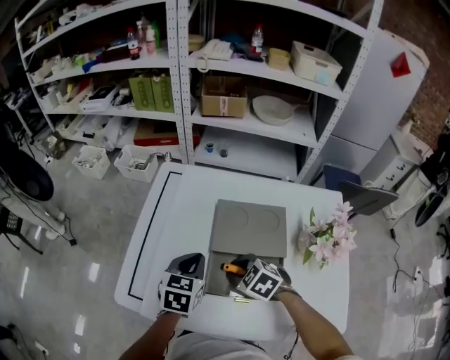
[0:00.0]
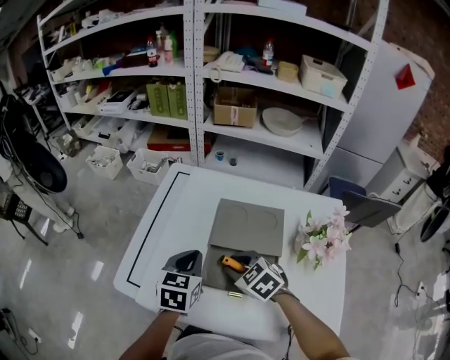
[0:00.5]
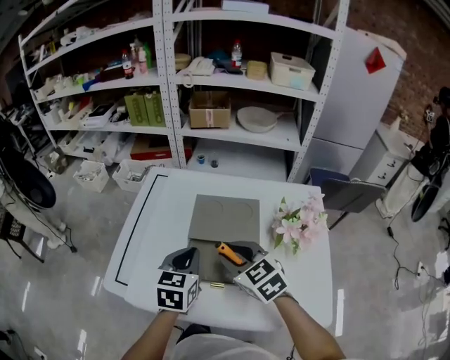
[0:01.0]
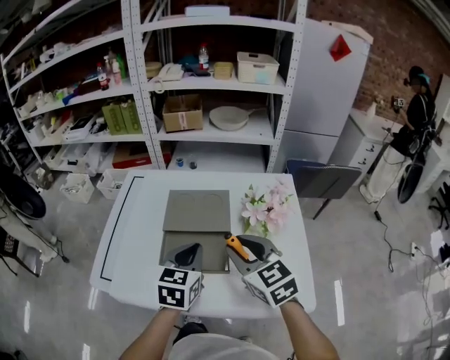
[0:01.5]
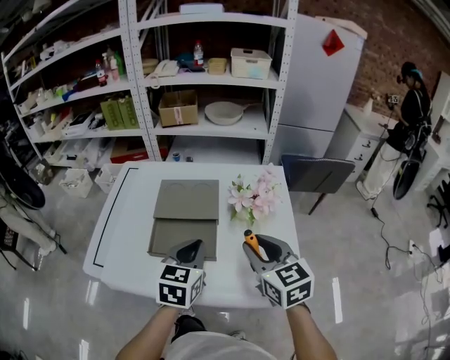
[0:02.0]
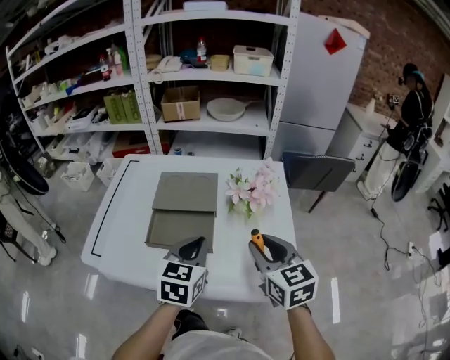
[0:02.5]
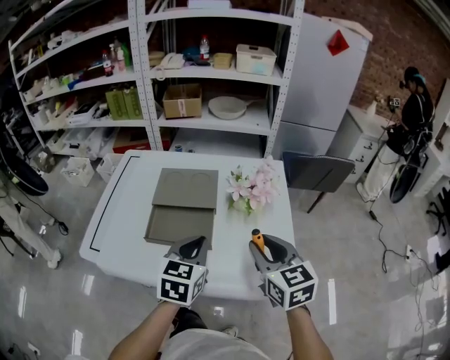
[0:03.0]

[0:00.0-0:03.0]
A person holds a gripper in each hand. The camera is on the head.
0:00.0 to 0:01.5: The right gripper shifts roughly 25 cm upward, to the right and backward, and tilts its fingers some 40 degrees upward; the left gripper heads to the right, backward and upward, covering approximately 20 cm.
0:01.5 to 0:03.0: The left gripper shifts approximately 10 cm backward and to the right, while the right gripper moves to the right and backward, roughly 15 cm.

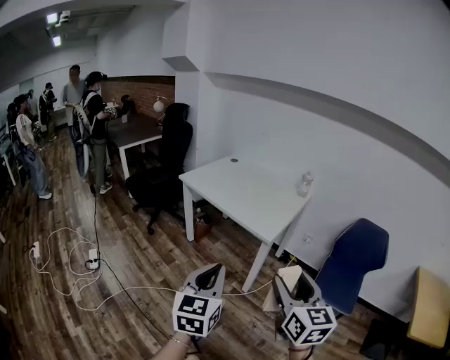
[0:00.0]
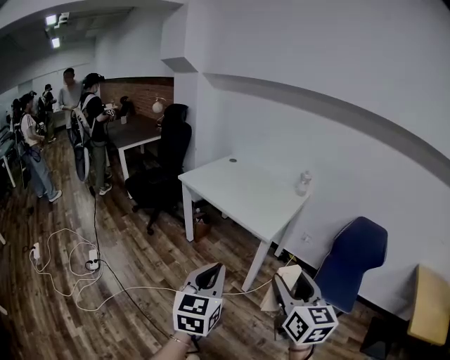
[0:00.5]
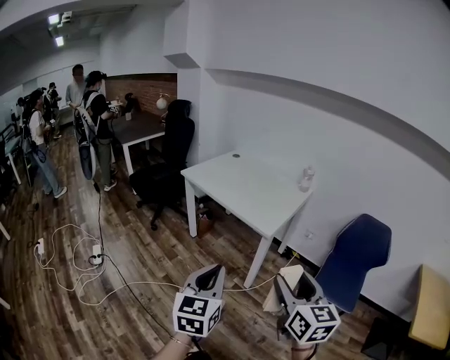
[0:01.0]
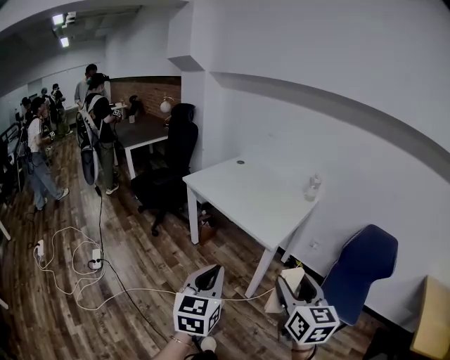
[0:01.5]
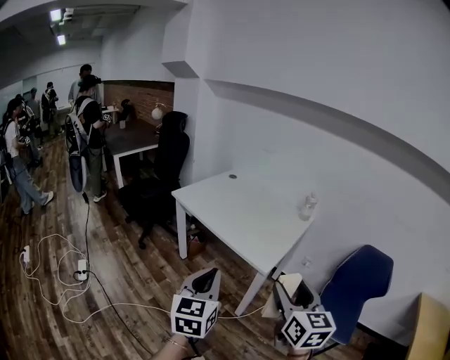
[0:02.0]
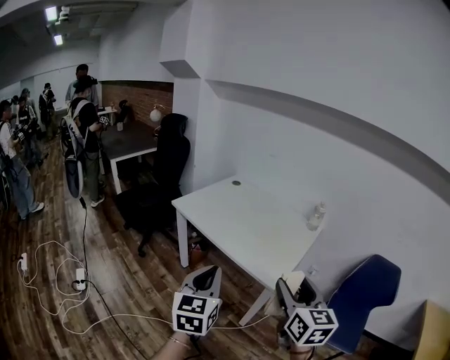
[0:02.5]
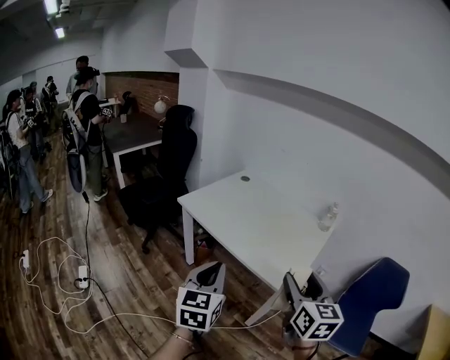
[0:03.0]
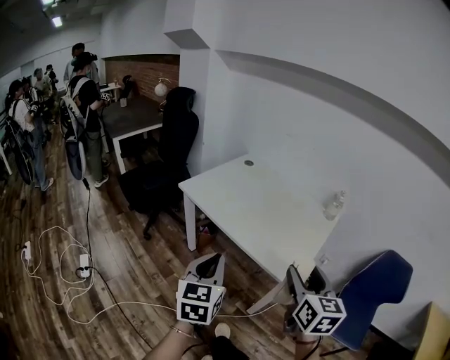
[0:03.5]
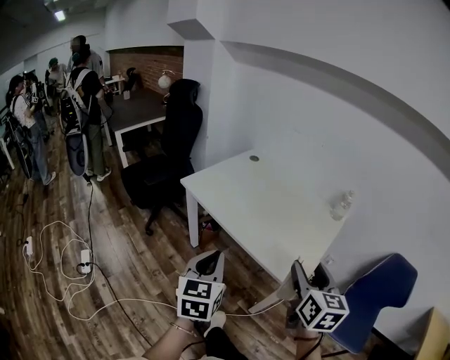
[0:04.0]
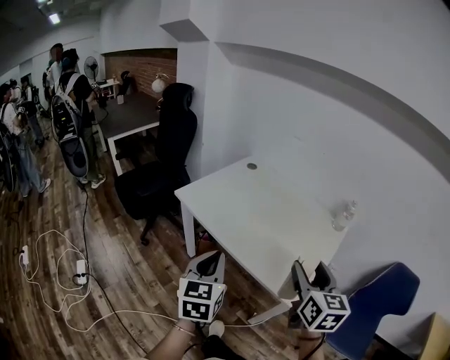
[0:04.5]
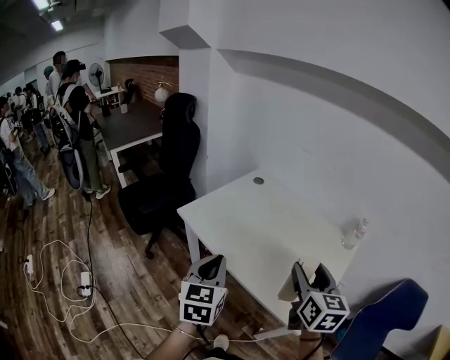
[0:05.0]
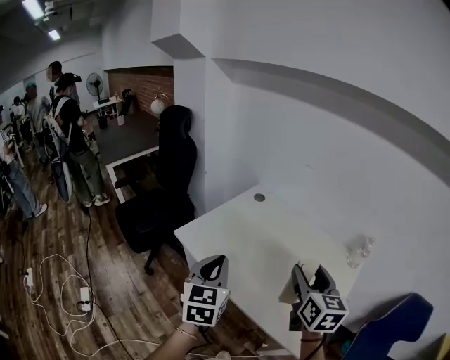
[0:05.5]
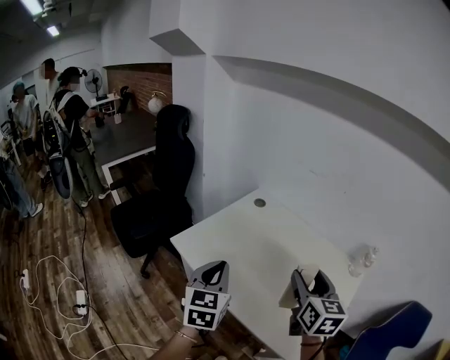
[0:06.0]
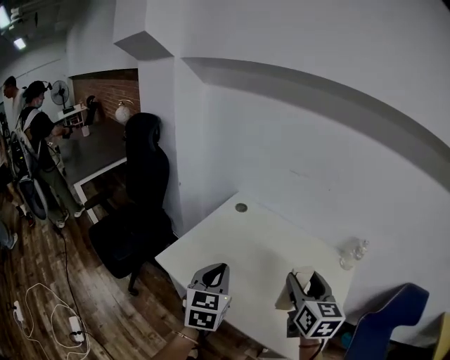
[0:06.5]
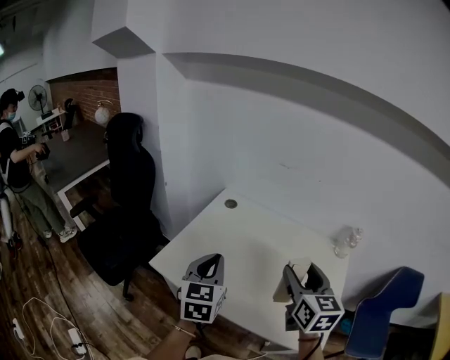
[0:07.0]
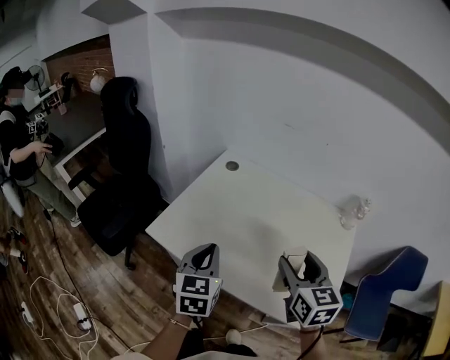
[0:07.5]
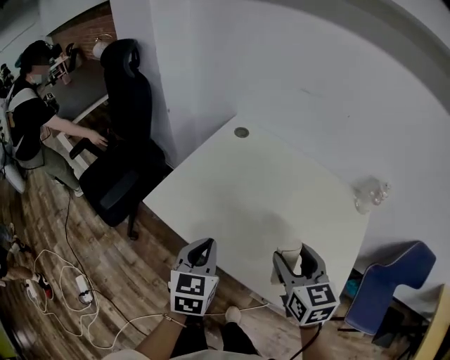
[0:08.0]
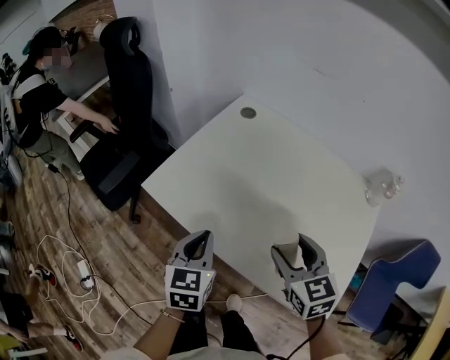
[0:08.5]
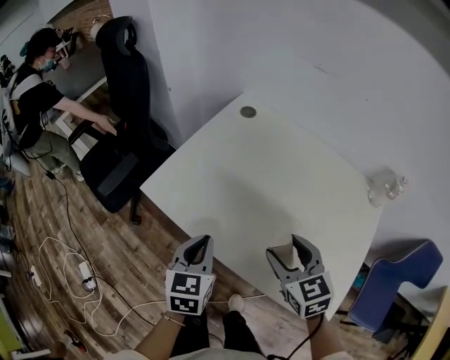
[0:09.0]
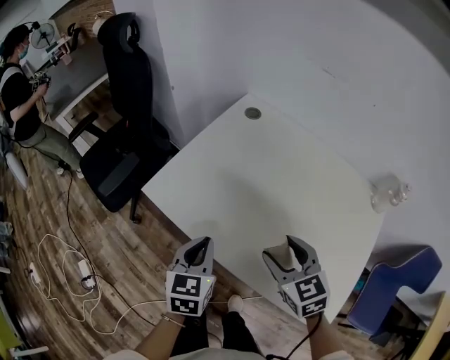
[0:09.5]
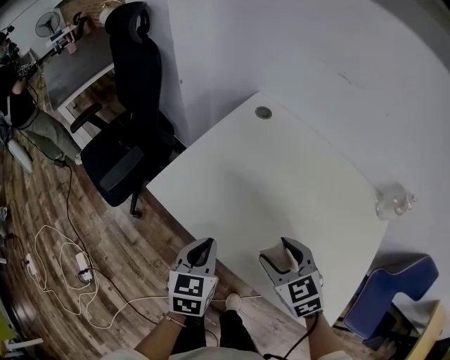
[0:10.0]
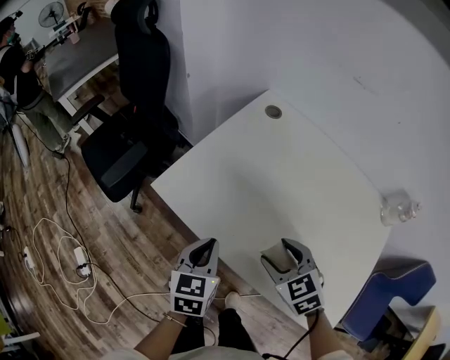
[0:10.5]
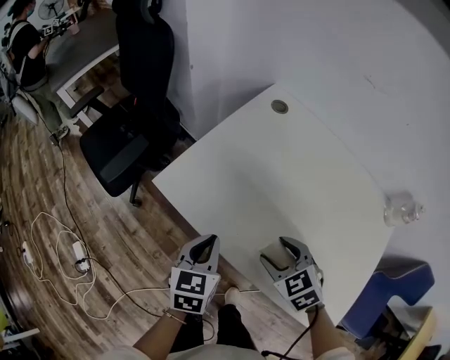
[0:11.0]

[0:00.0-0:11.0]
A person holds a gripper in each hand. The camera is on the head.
0:00.0 to 0:02.0: The two grippers go roughly 15 cm forward.
0:02.0 to 0:03.5: The right gripper heads forward, covering approximately 15 cm; the left gripper goes some 15 cm forward and to the left.
0:03.5 to 0:05.5: The two grippers go some 25 cm forward.
0:05.5 to 0:07.5: The right gripper ends up approximately 5 cm from where it was. The left gripper heads forward and downward, covering roughly 10 cm.
0:07.5 to 0:09.0: The grippers both shift downward by some 10 cm. The right gripper changes its angle by some 30 degrees.
0:09.0 to 0:11.0: The left gripper shifts by about 5 cm. Meanwhile the right gripper heads downward and to the left, covering approximately 10 cm, and swivels approximately 30 degrees.

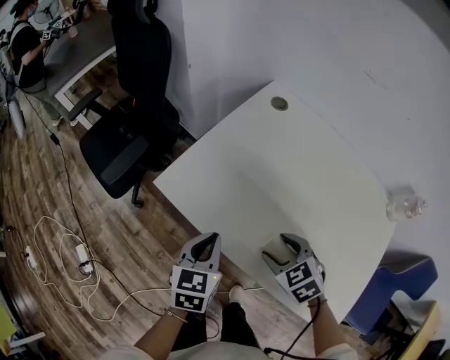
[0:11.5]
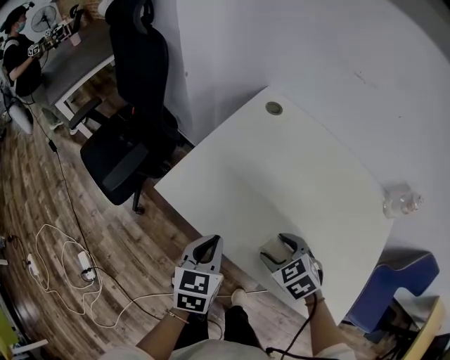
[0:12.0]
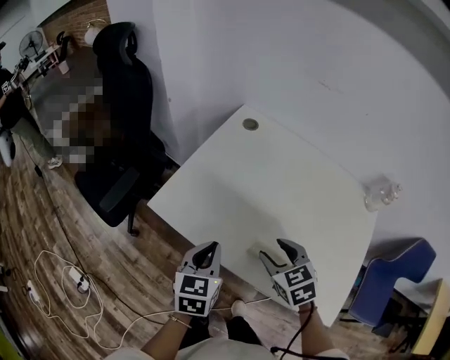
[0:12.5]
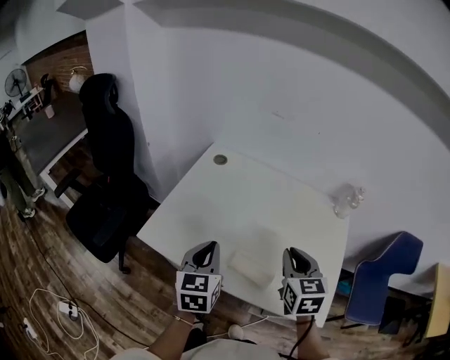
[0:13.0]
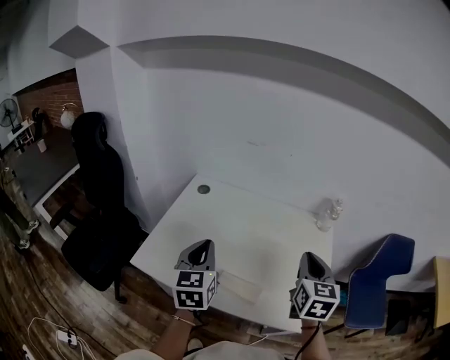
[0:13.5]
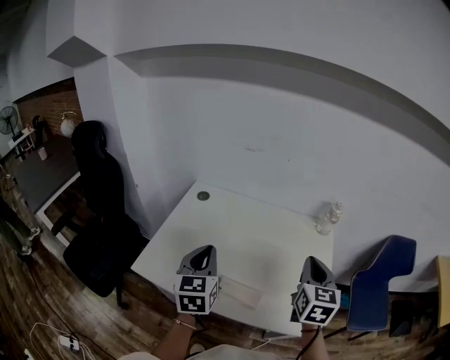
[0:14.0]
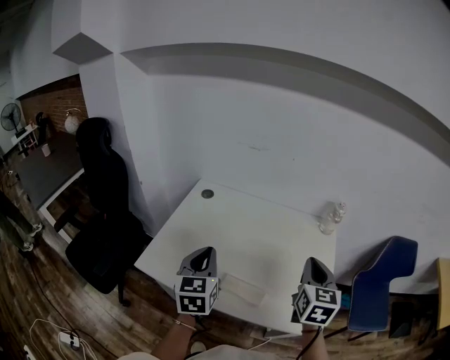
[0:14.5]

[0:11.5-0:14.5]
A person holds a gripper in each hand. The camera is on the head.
0:11.5 to 0:13.0: The two grippers go roughly 15 cm upward. The right gripper turns by about 50 degrees, and closes up.
0:13.0 to 0:14.5: The right gripper is displaced to the right and upward by about 10 cm, and swivels some 20 degrees; the left gripper heads upward, covering approximately 5 cm.

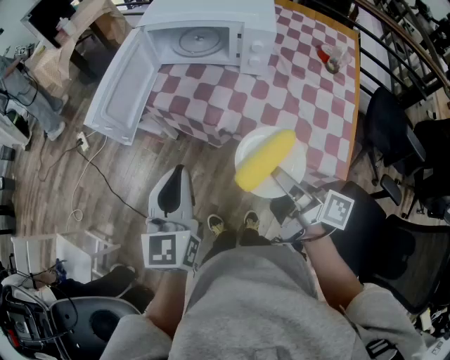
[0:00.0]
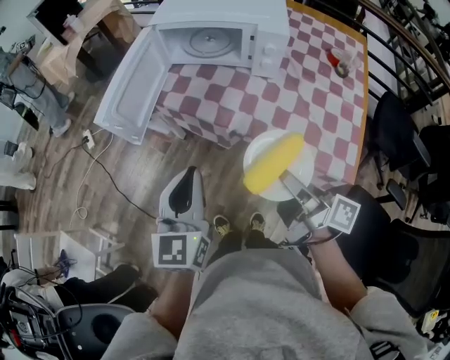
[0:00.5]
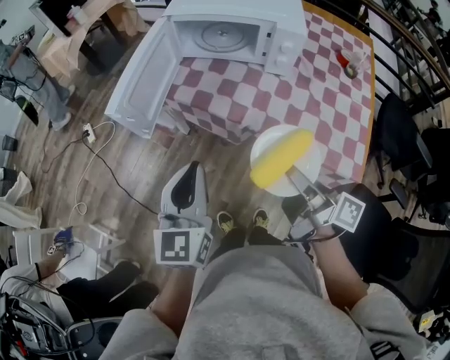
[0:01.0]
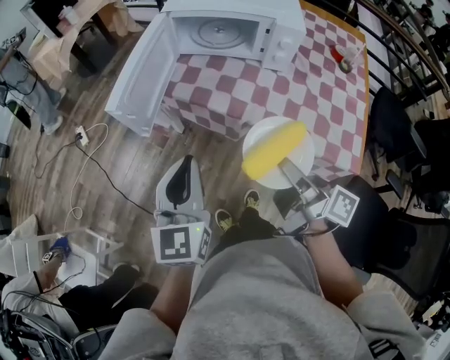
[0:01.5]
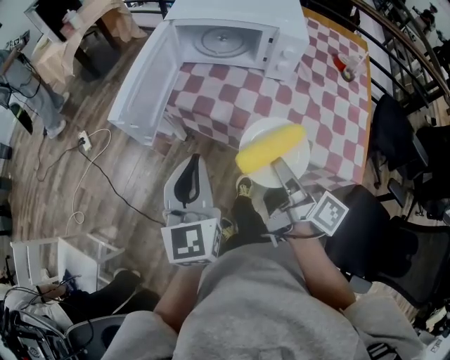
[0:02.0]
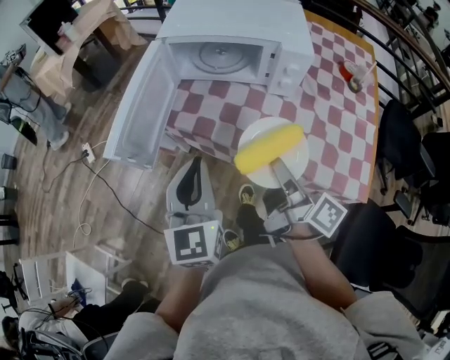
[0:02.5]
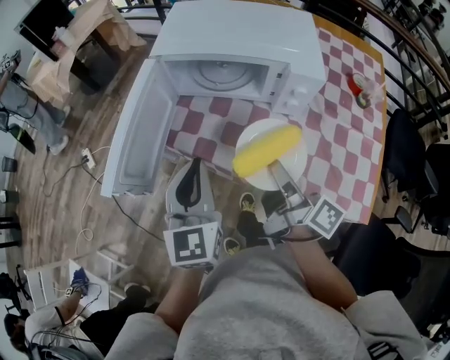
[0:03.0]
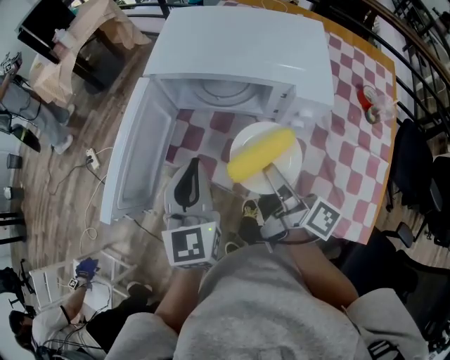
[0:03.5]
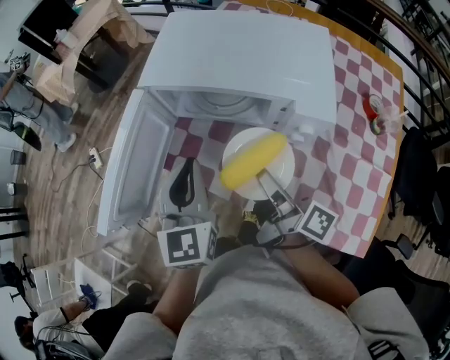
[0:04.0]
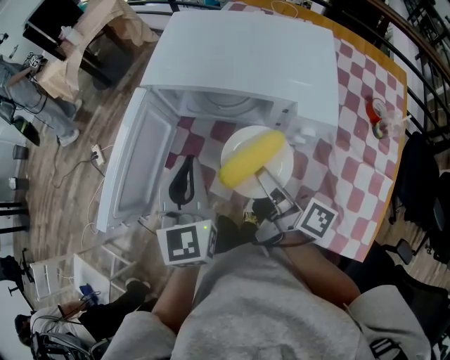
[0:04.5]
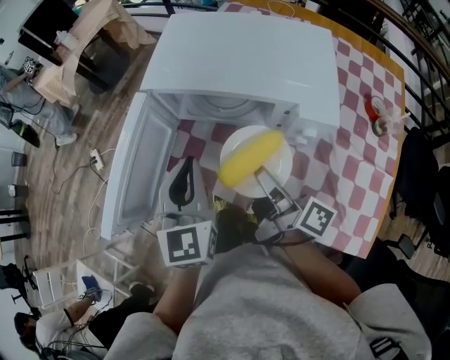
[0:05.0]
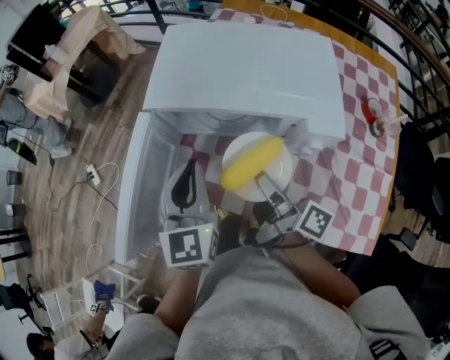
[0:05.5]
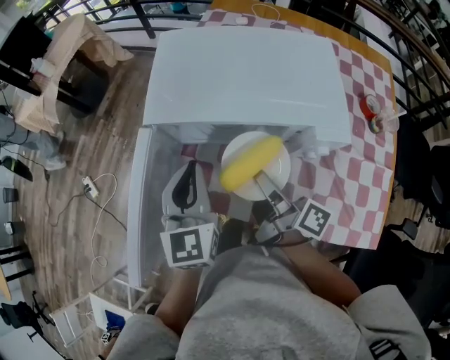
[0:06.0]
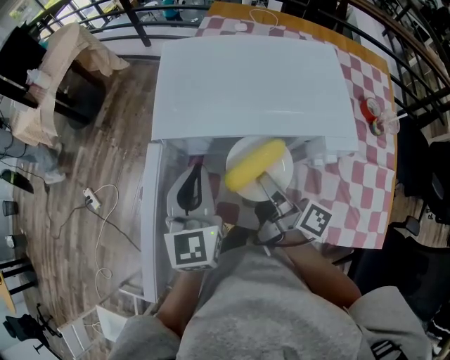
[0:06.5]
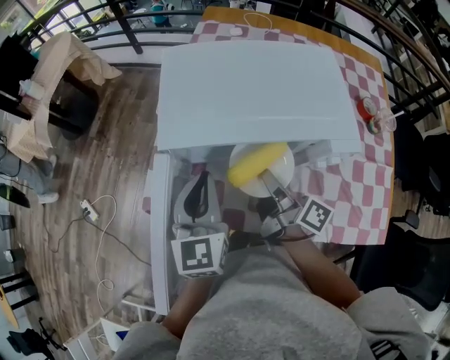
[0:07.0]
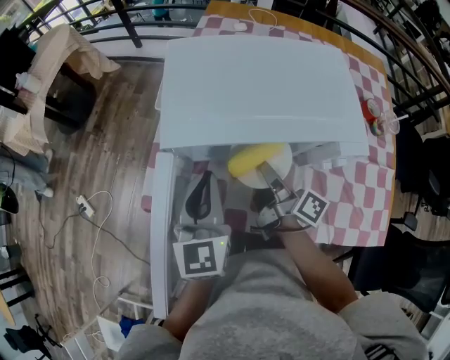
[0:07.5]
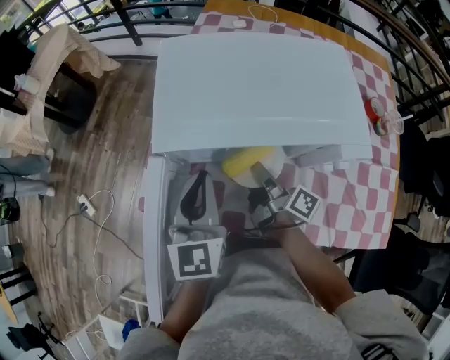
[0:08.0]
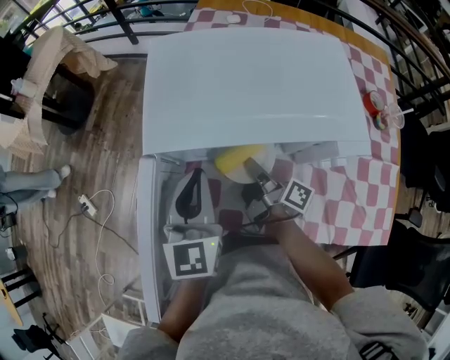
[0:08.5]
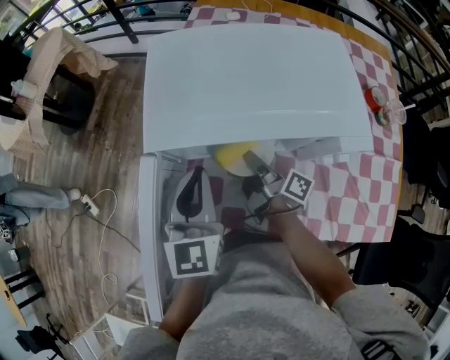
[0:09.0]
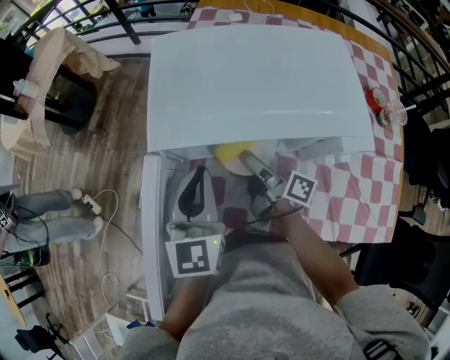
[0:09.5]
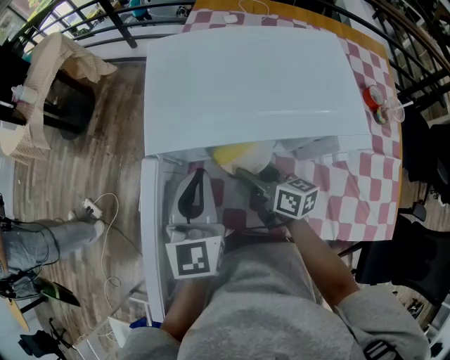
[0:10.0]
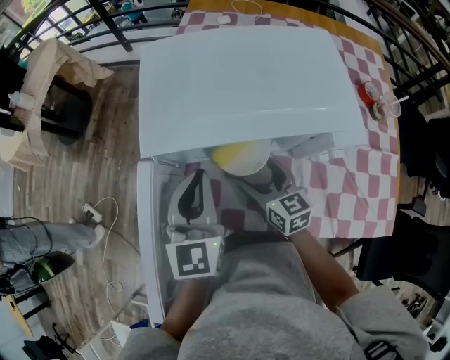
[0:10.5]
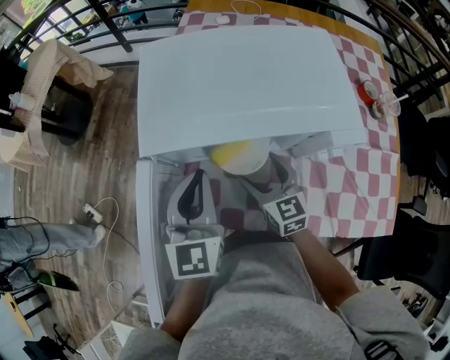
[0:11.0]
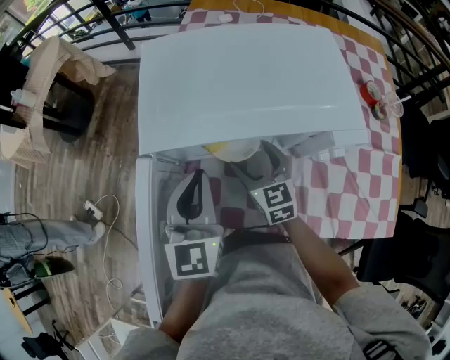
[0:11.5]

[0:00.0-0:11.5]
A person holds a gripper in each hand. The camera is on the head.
0:00.0 to 0:02.0: The right gripper travels to the left and forward by approximately 10 cm. The left gripper shifts approximately 5 cm to the left.
0:02.0 to 0:04.0: Both grippers move forward, some 25 cm.
0:04.0 to 0:06.0: Both grippers travel together forward, approximately 10 cm.
0:06.0 to 0:07.5: The right gripper shifts roughly 10 cm forward and downward.
0:07.5 to 0:09.5: The right gripper ends up about 5 cm from where it was, and opens.
0:09.5 to 0:11.5: The right gripper rotates around the line of its fingers by about 70 degrees, counterclockwise from behind, and opens up.
